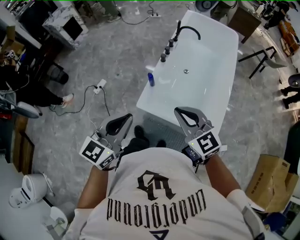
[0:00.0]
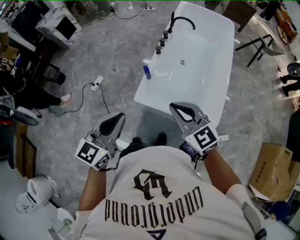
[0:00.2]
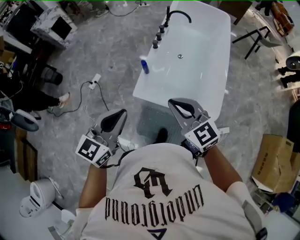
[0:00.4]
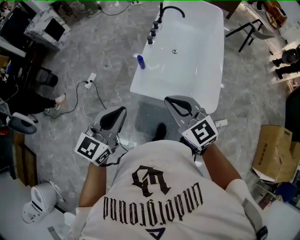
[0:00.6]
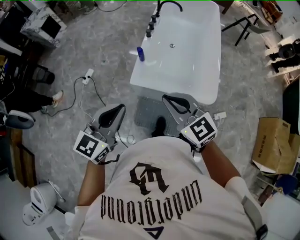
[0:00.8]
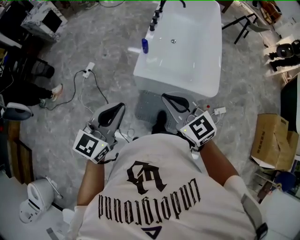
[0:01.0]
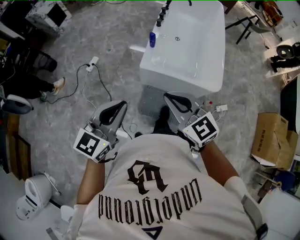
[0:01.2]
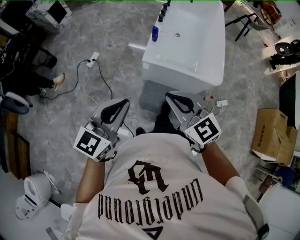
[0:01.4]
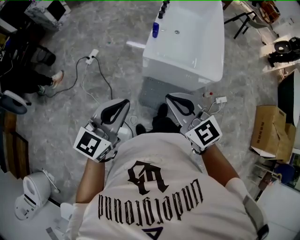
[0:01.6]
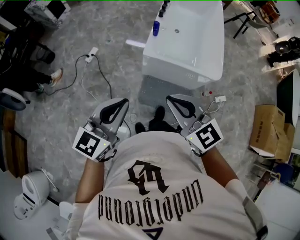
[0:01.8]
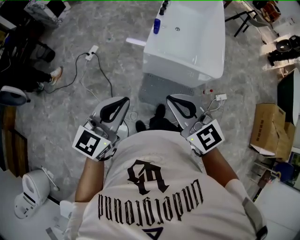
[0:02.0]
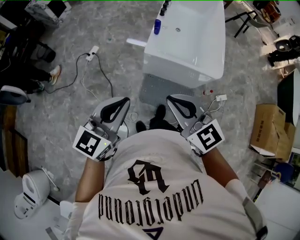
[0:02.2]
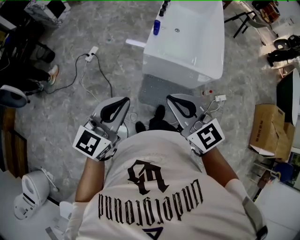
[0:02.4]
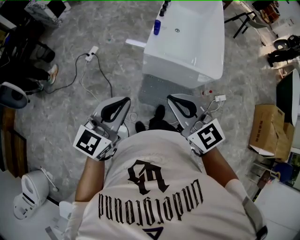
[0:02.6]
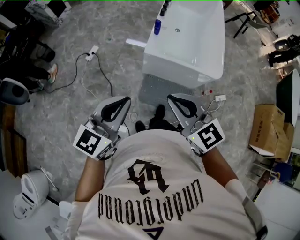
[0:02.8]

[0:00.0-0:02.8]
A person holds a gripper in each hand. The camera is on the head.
0.0 to 1.4 s: Both grippers travel together backward and to the left, some 35 cm.
1.4 to 2.8 s: The left gripper shifts by about 5 cm. Meanwhile the right gripper shifts approximately 5 cm backward.

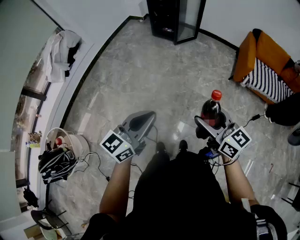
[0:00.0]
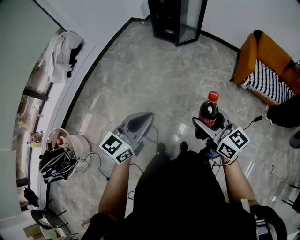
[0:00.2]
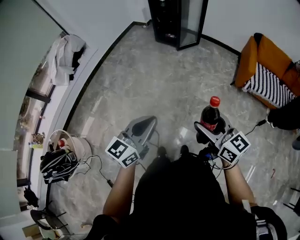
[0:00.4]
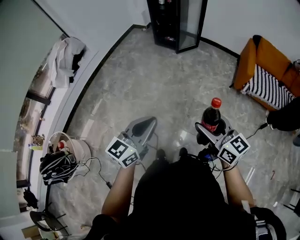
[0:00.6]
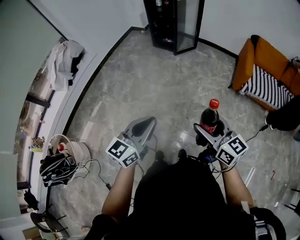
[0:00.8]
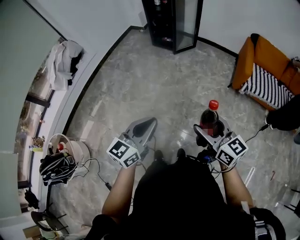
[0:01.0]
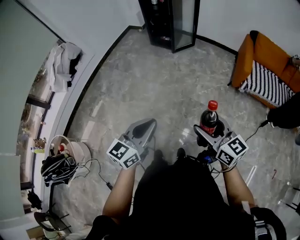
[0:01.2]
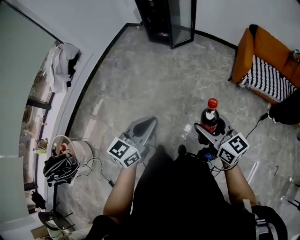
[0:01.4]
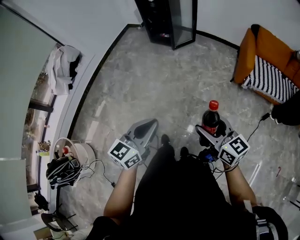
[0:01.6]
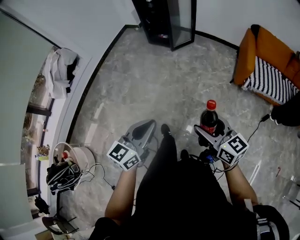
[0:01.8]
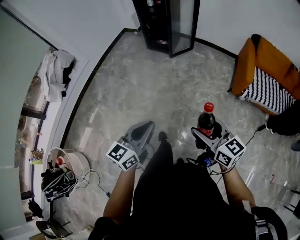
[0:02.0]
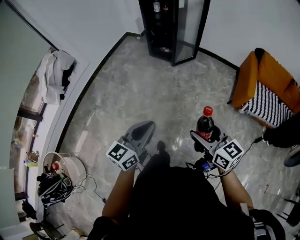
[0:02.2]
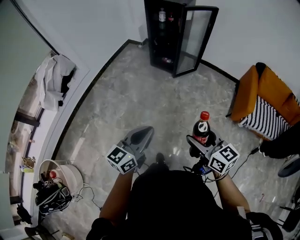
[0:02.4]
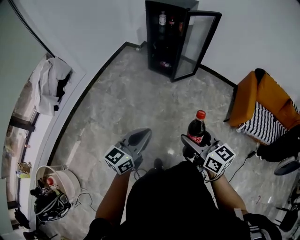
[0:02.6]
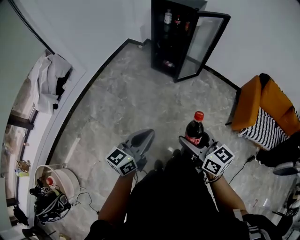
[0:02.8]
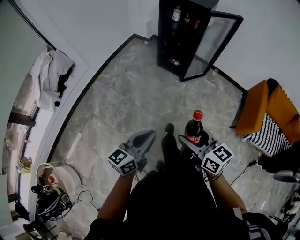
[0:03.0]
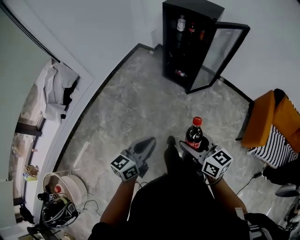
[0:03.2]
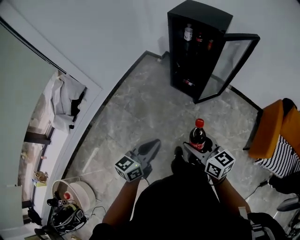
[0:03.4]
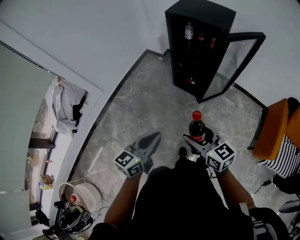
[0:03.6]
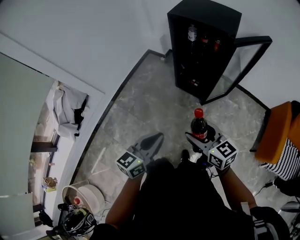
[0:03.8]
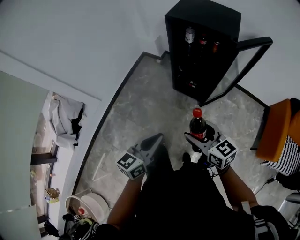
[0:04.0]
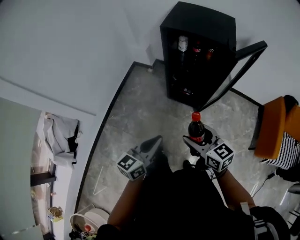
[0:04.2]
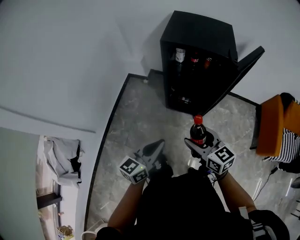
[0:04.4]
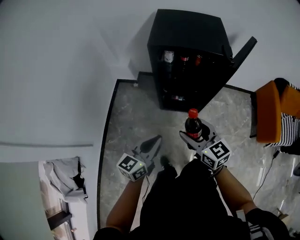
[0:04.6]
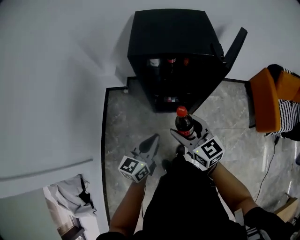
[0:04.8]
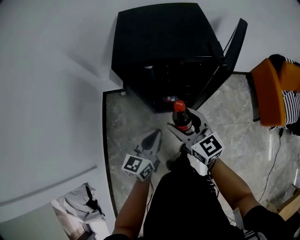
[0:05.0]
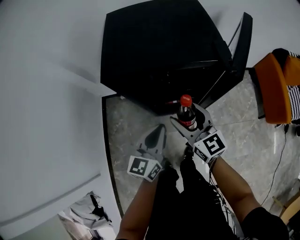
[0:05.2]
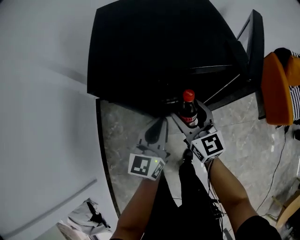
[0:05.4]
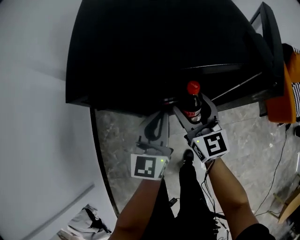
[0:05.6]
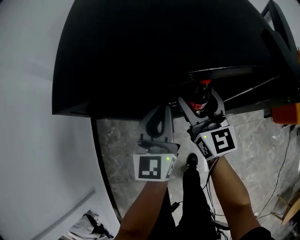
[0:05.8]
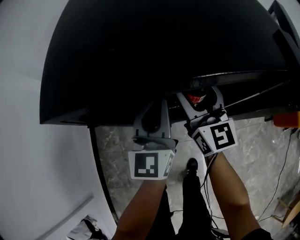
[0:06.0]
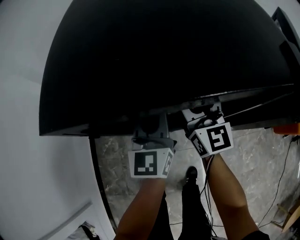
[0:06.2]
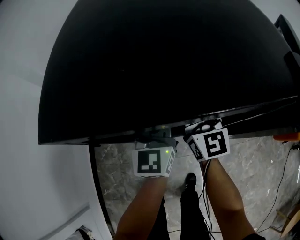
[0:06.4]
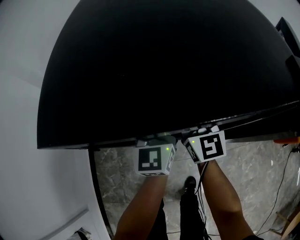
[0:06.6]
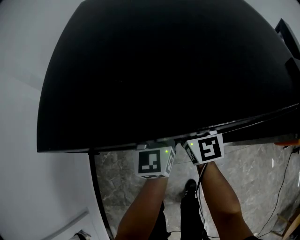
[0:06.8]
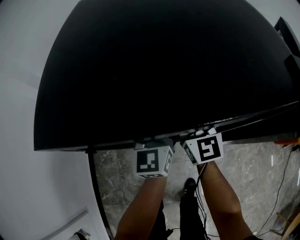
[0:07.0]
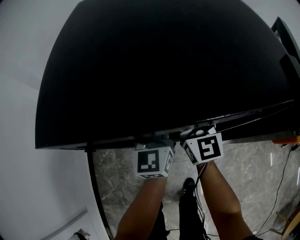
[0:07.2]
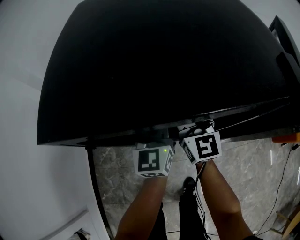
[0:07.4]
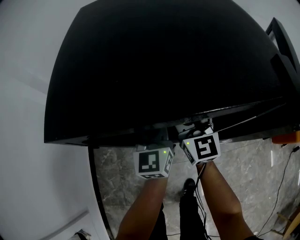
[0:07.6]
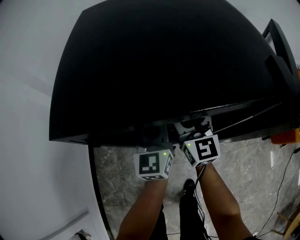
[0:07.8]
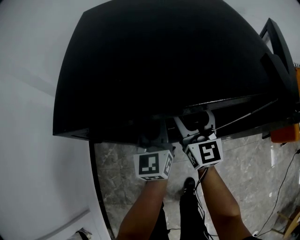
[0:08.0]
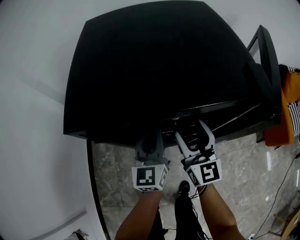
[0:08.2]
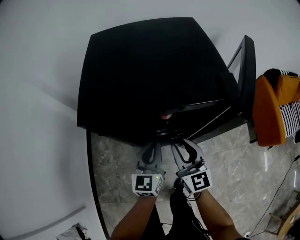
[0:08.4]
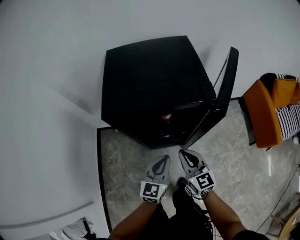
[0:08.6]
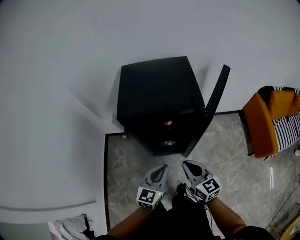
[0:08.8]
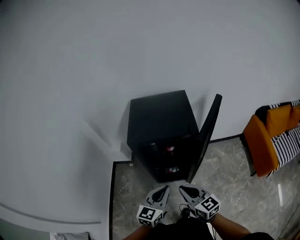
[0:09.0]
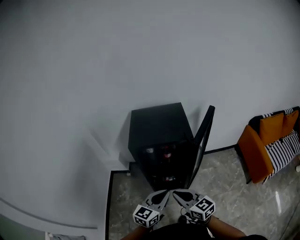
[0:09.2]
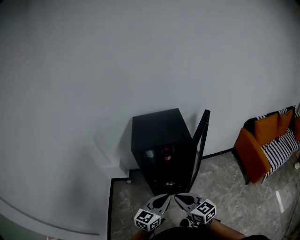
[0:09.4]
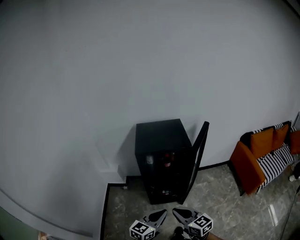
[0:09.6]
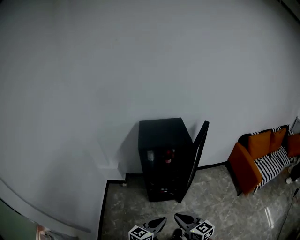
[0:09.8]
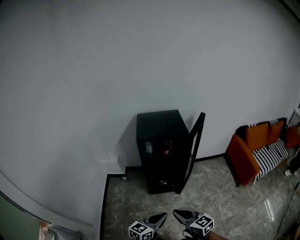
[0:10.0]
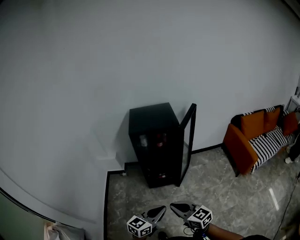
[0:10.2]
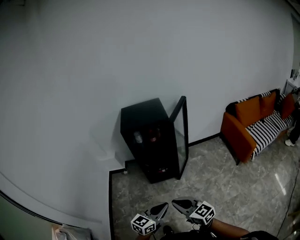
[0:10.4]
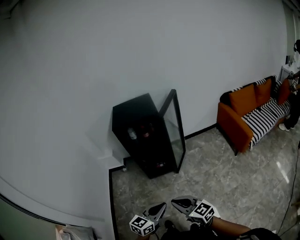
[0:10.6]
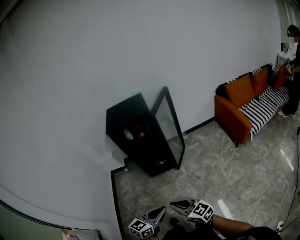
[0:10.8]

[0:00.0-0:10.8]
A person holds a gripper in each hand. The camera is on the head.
0.0 to 1.6 s: Both grippers move to the right, roughly 10 cm.
1.6 to 3.0 s: The two grippers travel together, forward and to the left, approximately 40 cm.
3.0 to 4.6 s: Both grippers are carried forward, roughly 60 cm. The right gripper changes its angle by roughly 20 degrees. Meanwhile the left gripper turns by roughly 20 degrees.
4.6 to 6.2 s: Both grippers move forward, roughly 40 cm. The left gripper rotates approximately 20 degrees. The right gripper turns by approximately 40 degrees.
6.2 to 7.8 s: The grippers make only small movements.
7.8 to 9.2 s: The grippers both shift backward and upward by about 40 cm. The right gripper changes its angle by some 30 degrees, and closes its fingers; the left gripper turns by some 30 degrees.
9.2 to 10.8 s: The two grippers go some 35 cm backward.

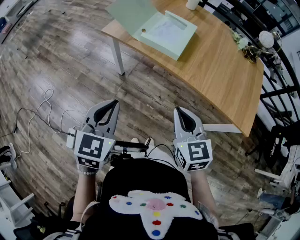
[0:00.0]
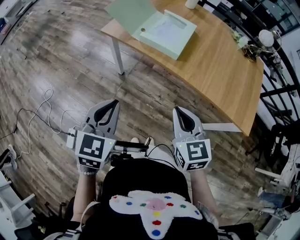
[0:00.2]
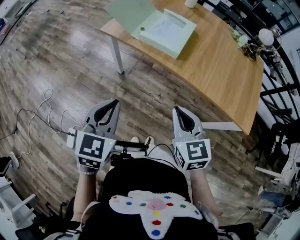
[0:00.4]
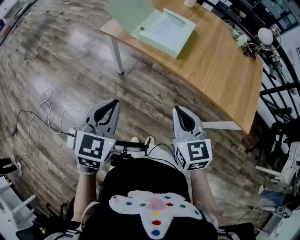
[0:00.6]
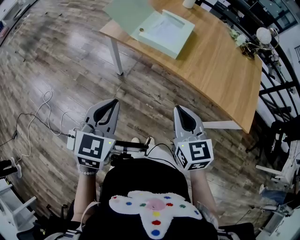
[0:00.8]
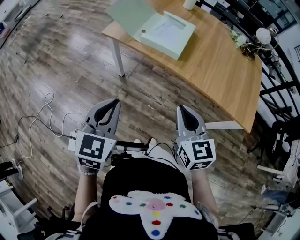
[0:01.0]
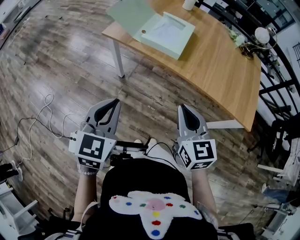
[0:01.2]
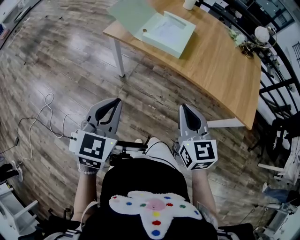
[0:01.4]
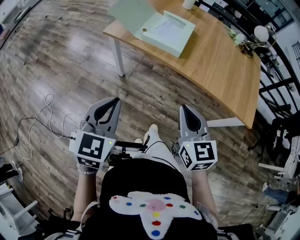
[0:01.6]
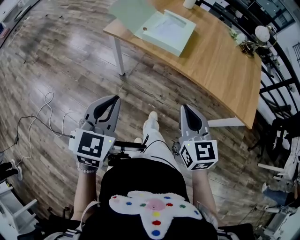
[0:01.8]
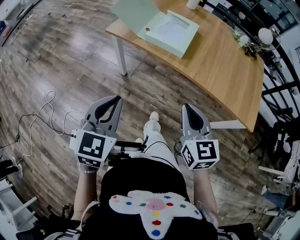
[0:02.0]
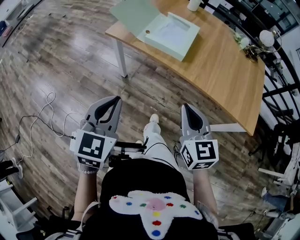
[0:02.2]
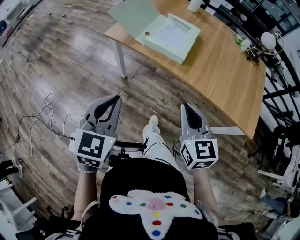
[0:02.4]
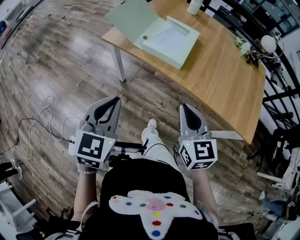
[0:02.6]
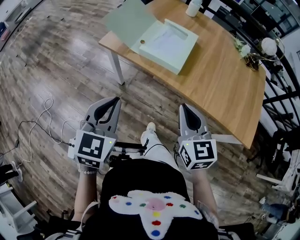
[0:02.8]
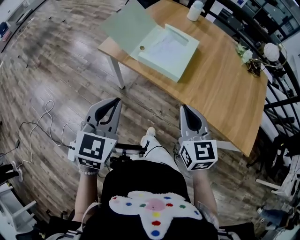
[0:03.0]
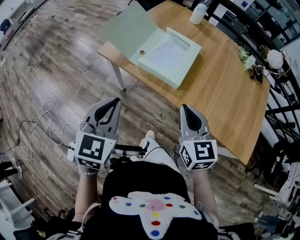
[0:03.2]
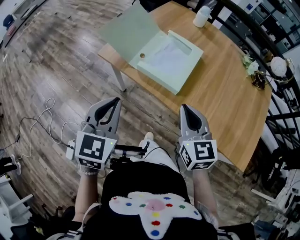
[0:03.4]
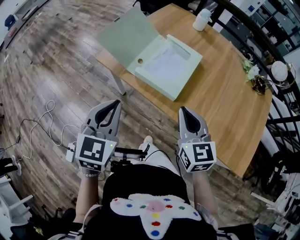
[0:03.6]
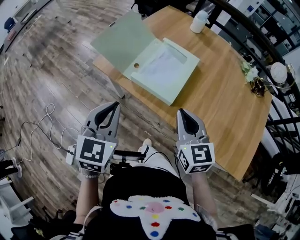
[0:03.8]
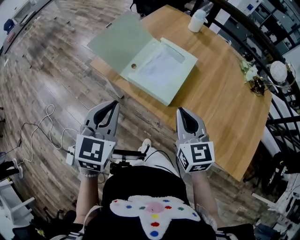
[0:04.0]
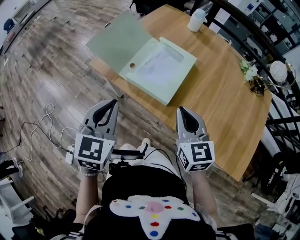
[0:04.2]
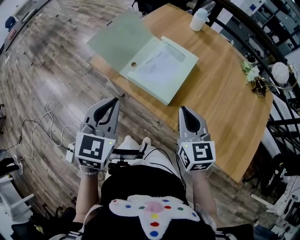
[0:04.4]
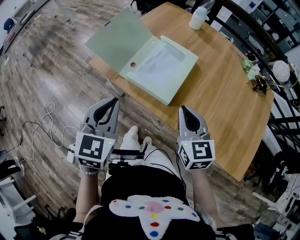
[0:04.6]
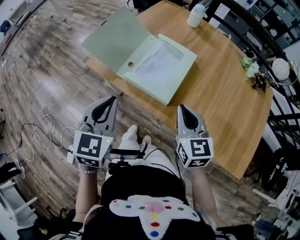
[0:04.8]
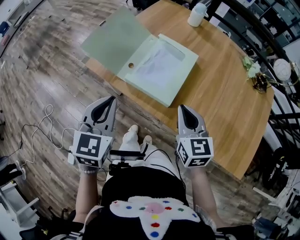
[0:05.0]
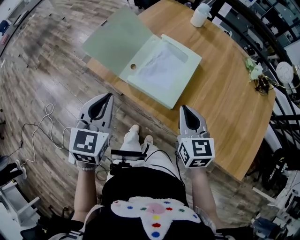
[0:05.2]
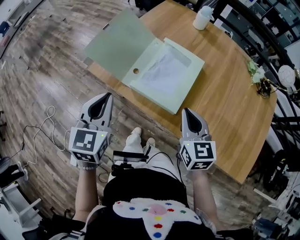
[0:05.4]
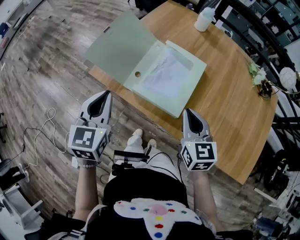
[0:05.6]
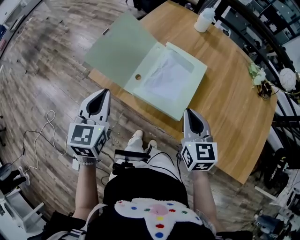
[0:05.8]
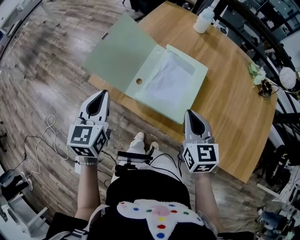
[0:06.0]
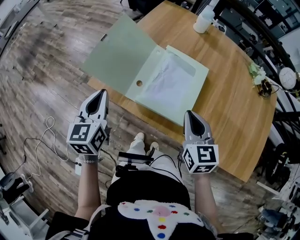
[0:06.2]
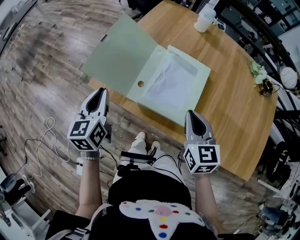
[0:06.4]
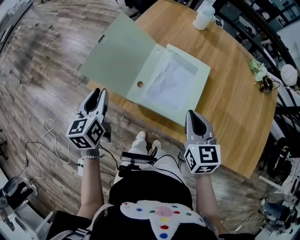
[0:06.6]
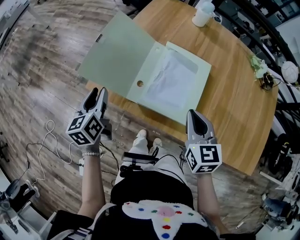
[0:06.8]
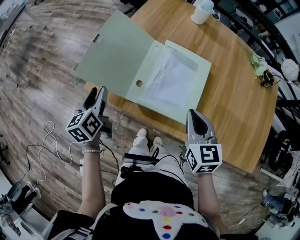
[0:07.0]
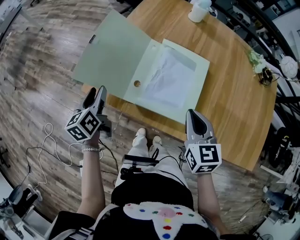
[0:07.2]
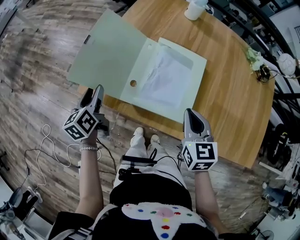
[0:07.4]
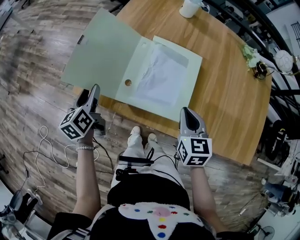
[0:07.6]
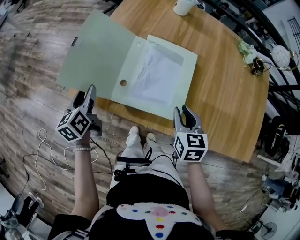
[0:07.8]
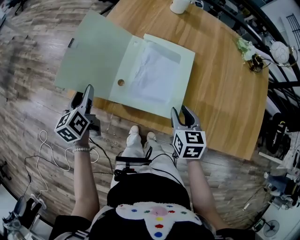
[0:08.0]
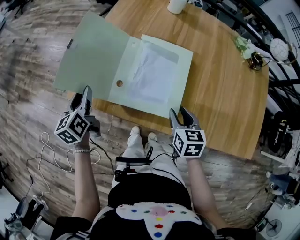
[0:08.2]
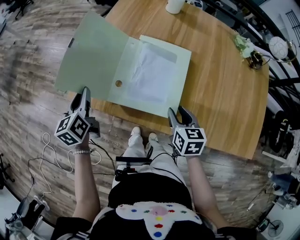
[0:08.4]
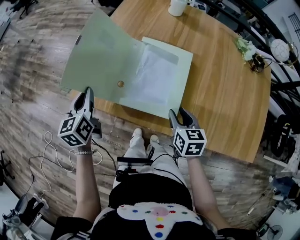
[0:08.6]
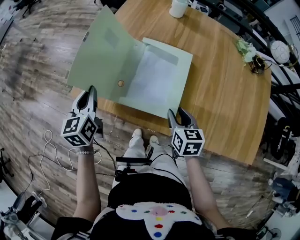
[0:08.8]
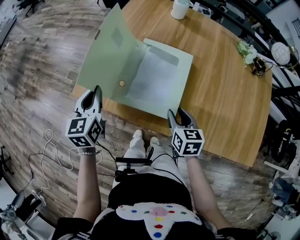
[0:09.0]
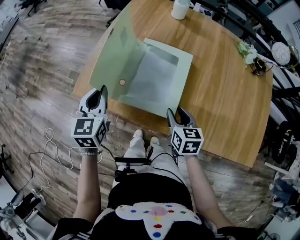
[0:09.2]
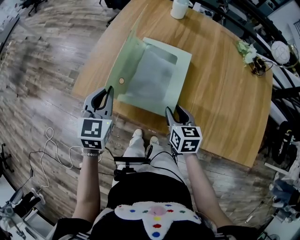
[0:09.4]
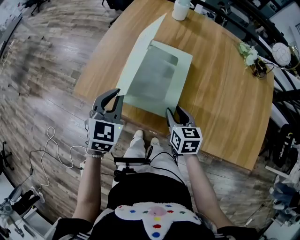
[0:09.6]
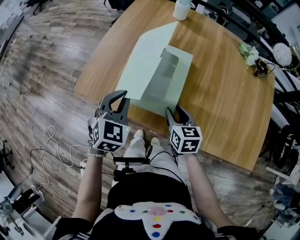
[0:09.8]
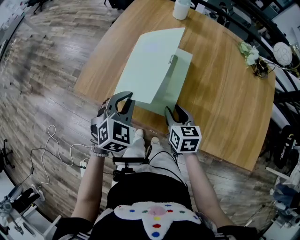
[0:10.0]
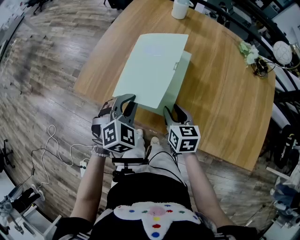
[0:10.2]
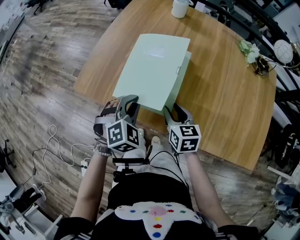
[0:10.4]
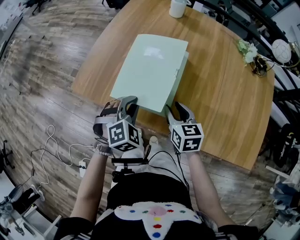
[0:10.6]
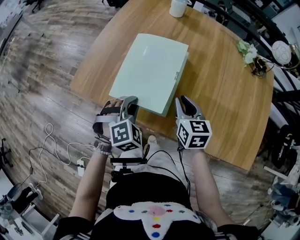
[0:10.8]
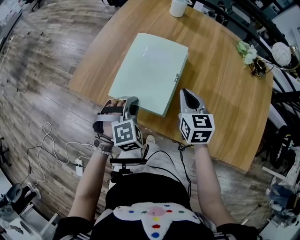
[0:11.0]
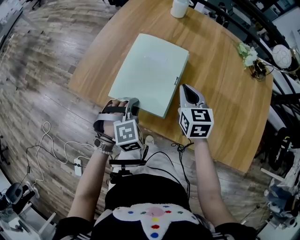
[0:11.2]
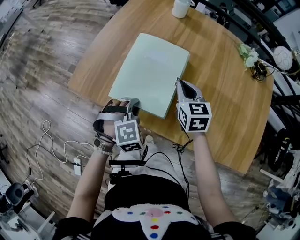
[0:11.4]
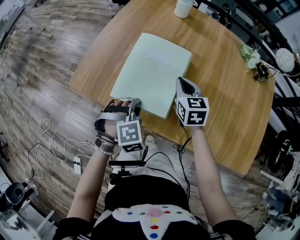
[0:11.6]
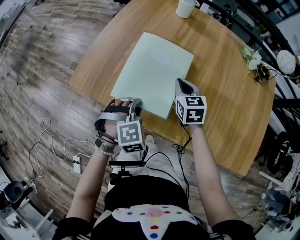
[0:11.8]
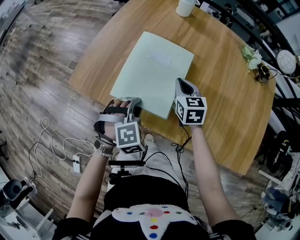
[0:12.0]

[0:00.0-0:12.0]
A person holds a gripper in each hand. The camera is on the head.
0.0 to 1.6 s: There are only small adjustments of the grippers.
1.6 to 3.0 s: The two grippers go about 15 cm forward.
3.0 to 4.4 s: The two grippers go about 15 cm forward and to the right.
4.4 to 6.0 s: The right gripper goes about 10 cm forward, while the left gripper shifts approximately 20 cm forward and to the left.
6.0 to 7.6 s: The right gripper is displaced downward by about 5 cm. Meanwhile the left gripper goes some 20 cm downward, forward and to the left, swivels about 30 degrees, and opens.
7.6 to 9.0 s: The left gripper goes some 10 cm to the right and upward, rotates roughly 30 degrees, and closes up. The right gripper heads downward, covering roughly 5 cm, and opens up.
9.0 to 10.4 s: The left gripper shifts approximately 20 cm to the right and backward, and rotates around the line of its fingers by approximately 60 degrees, clockwise from behind.
10.4 to 12.0 s: The right gripper moves forward, approximately 10 cm, and closes up.
